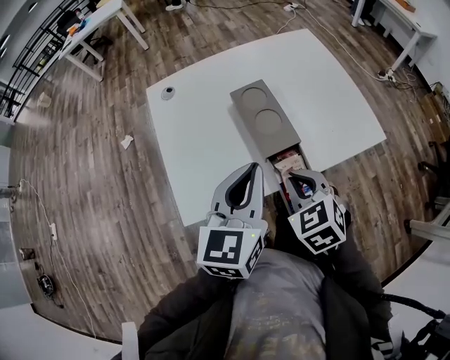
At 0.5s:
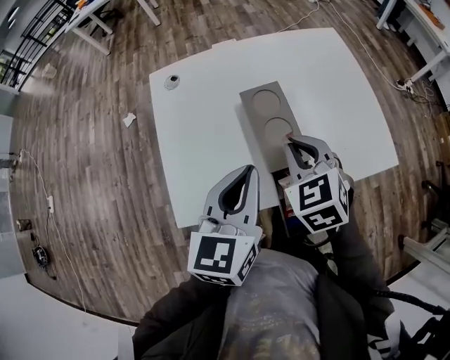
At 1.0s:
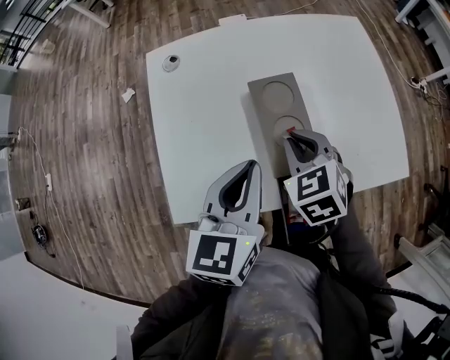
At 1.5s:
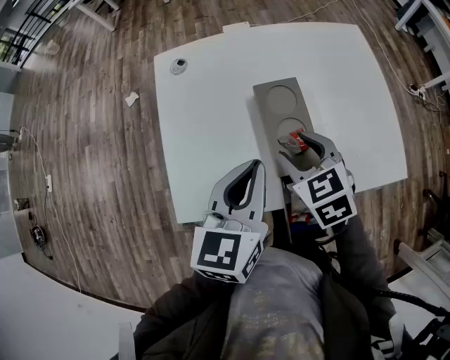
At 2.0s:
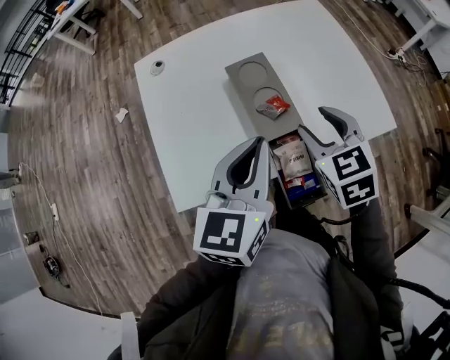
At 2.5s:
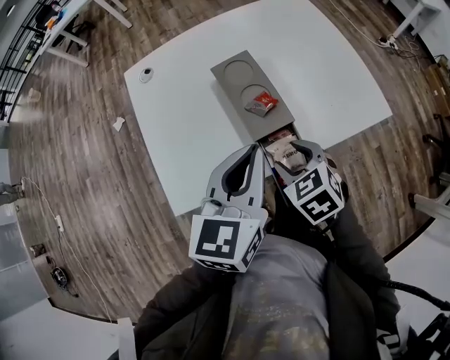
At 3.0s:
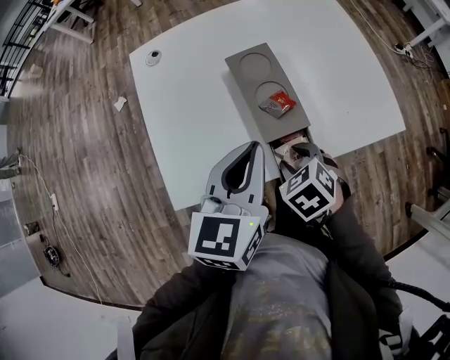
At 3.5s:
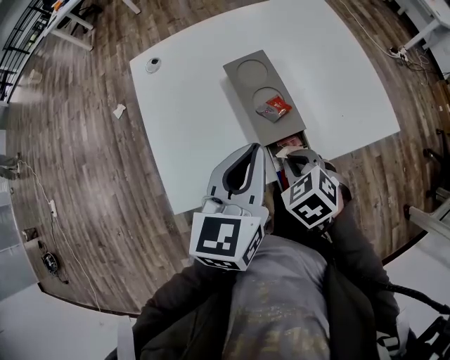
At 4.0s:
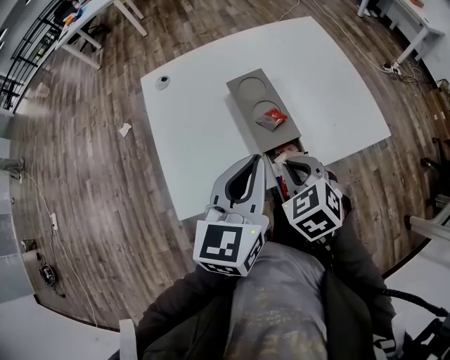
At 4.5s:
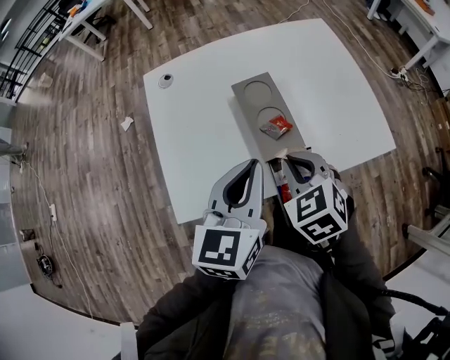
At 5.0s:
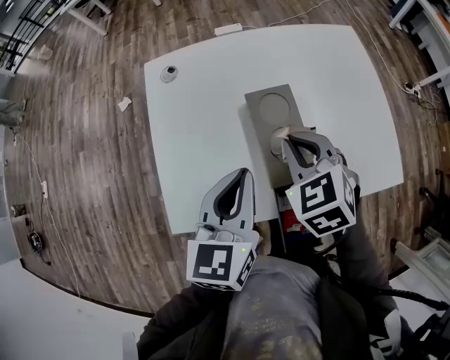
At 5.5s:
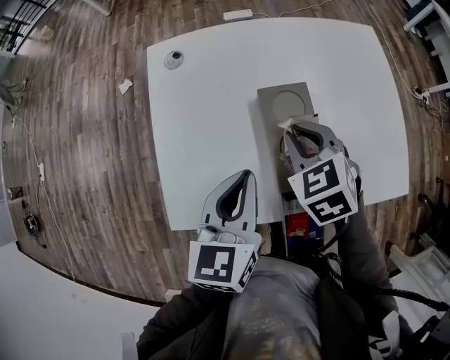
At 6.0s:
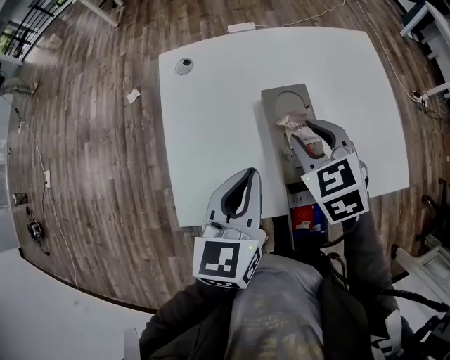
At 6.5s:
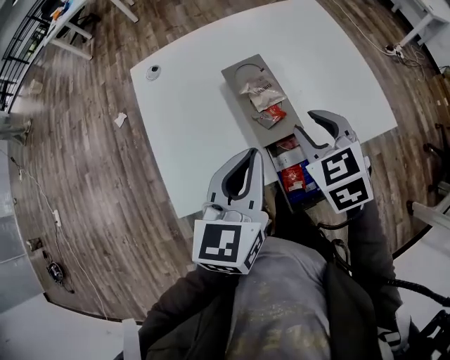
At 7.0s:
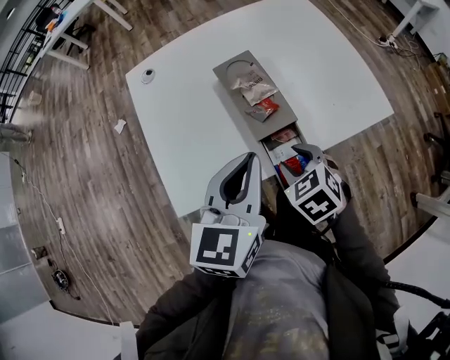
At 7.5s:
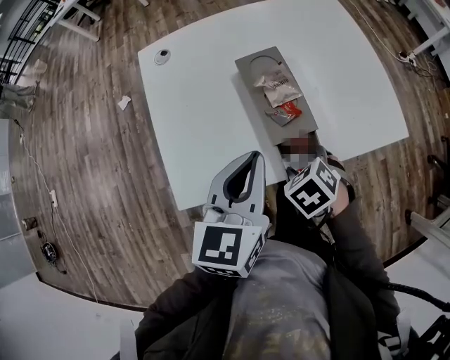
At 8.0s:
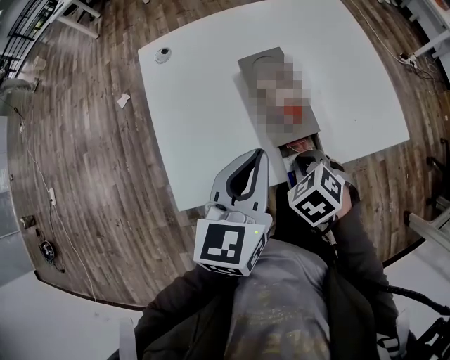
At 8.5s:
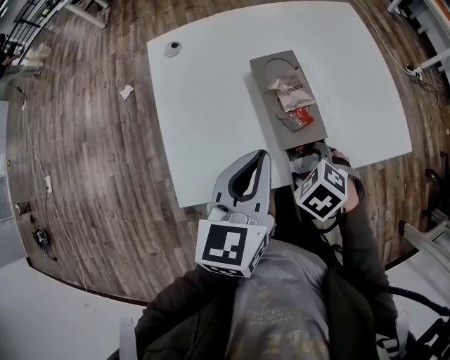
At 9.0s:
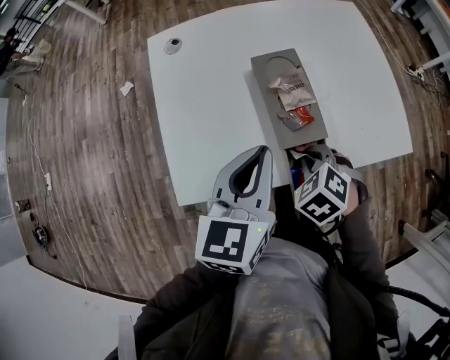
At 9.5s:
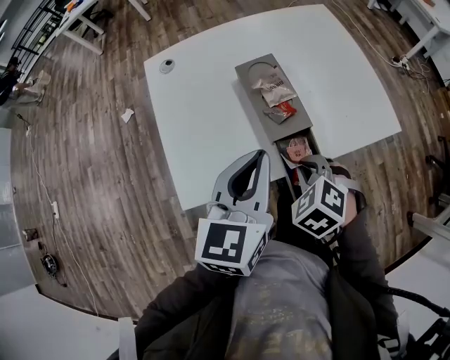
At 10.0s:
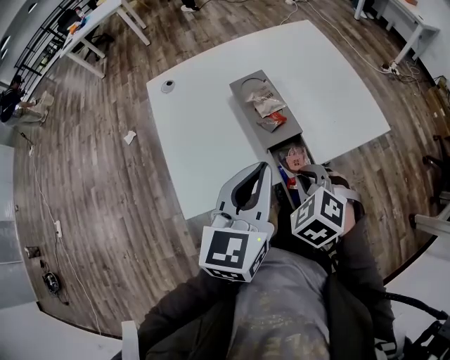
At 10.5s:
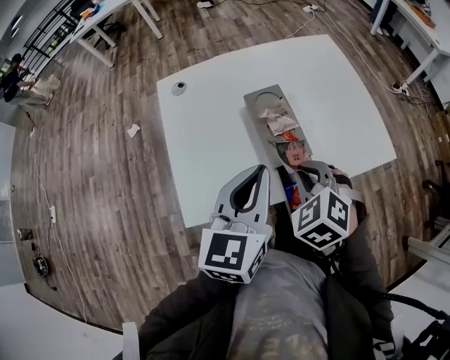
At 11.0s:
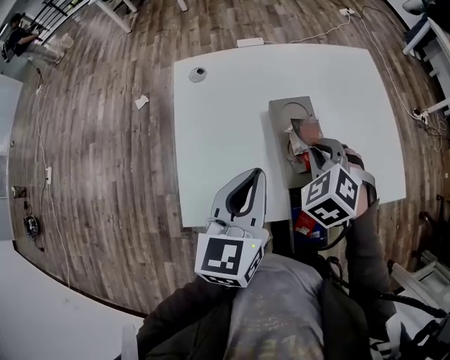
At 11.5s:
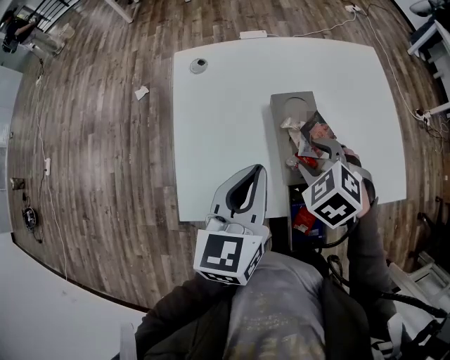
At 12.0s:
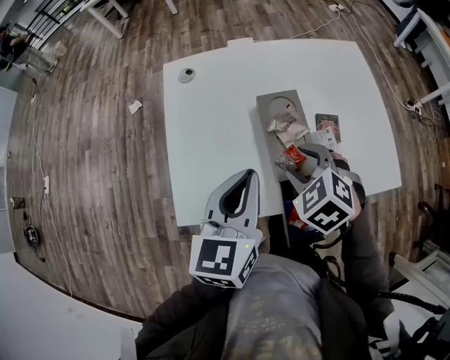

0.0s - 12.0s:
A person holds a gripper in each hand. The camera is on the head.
0.0s - 2.0s: The right gripper goes approximately 10 cm forward and to the right, and opens its fingers.
2.0s - 4.0s: The right gripper shifts some 10 cm backward and to the left, reaches roughly 15 cm downward, then returns, and closes.
4.0s - 6.0s: The right gripper goes about 15 cm forward, and opens up. Meanwhile the left gripper shifts approximately 10 cm forward and to the left.
6.0s - 8.0s: The right gripper shifts about 20 cm backward and downward, rotates about 20 degrees, and closes its fingers.
8.0s - 10.0s: The right gripper is displaced upward by approximately 5 cm, and opens, then closes again, while the left gripper is displaced backward by about 5 cm.
10.0s - 12.0s: The left gripper heads forward and to the left, covering approximately 10 cm. The right gripper is displaced forward by some 15 cm, and opens up.

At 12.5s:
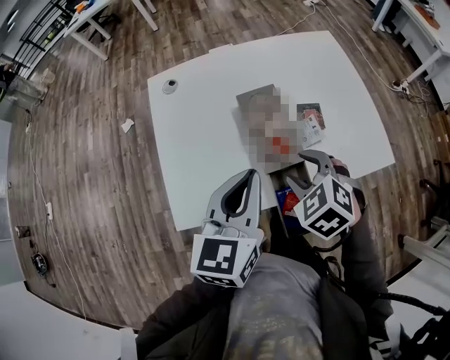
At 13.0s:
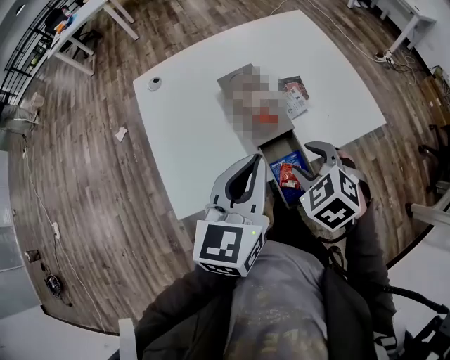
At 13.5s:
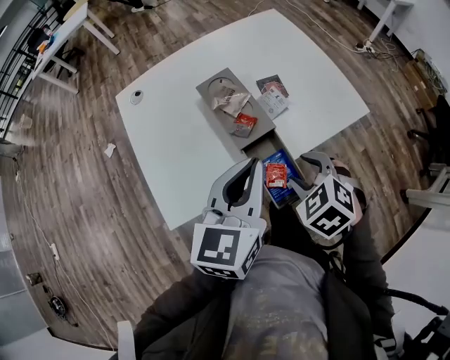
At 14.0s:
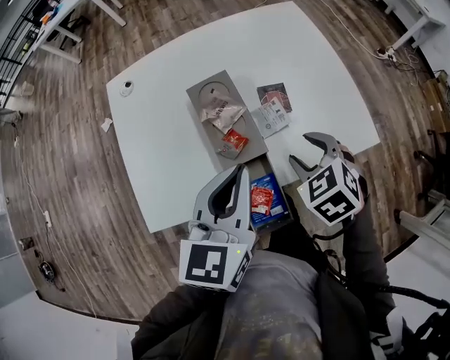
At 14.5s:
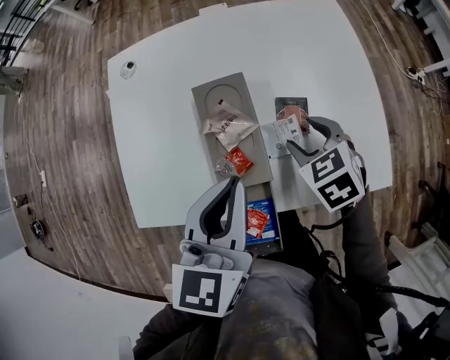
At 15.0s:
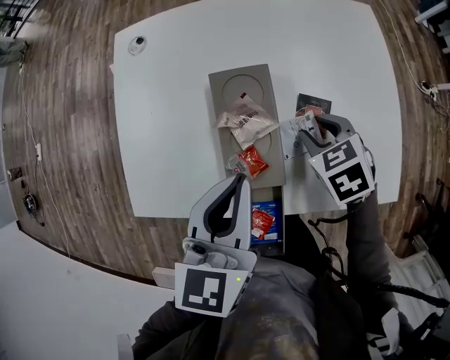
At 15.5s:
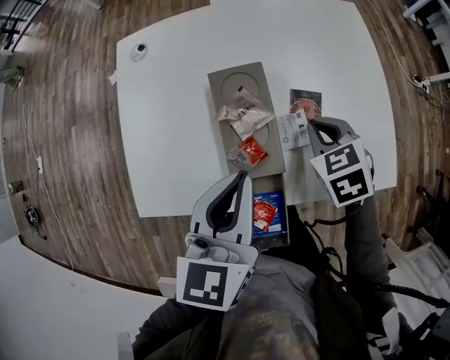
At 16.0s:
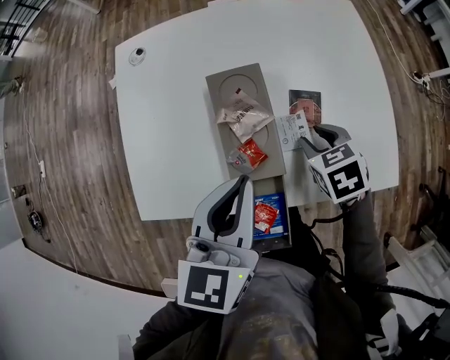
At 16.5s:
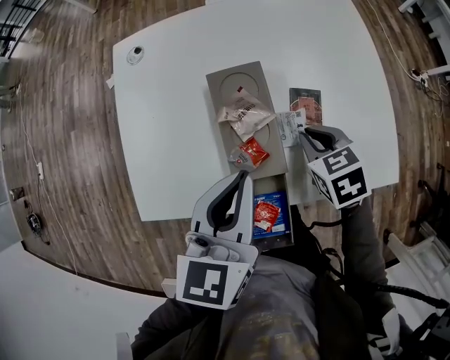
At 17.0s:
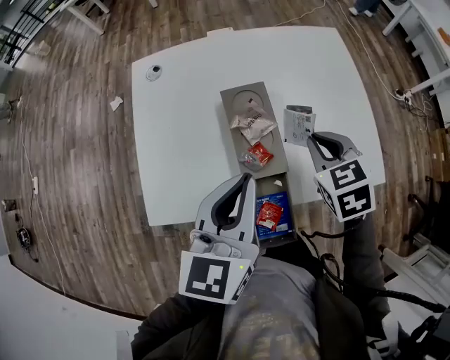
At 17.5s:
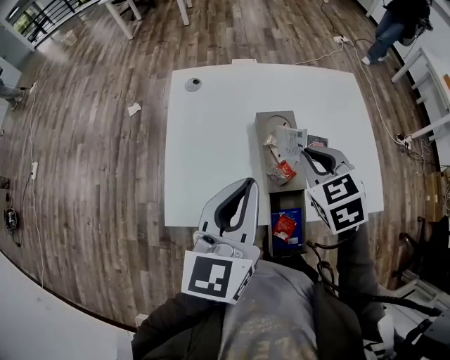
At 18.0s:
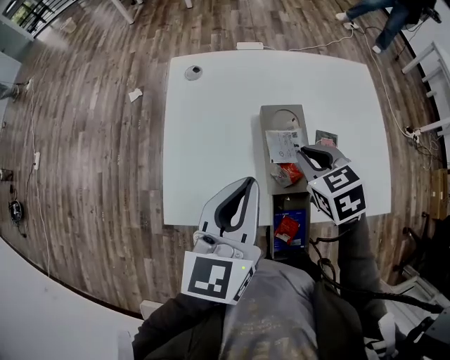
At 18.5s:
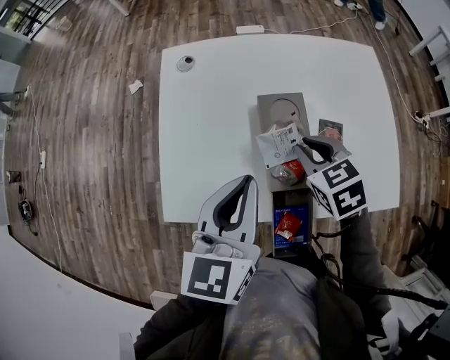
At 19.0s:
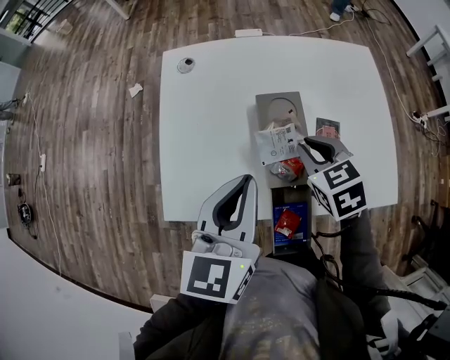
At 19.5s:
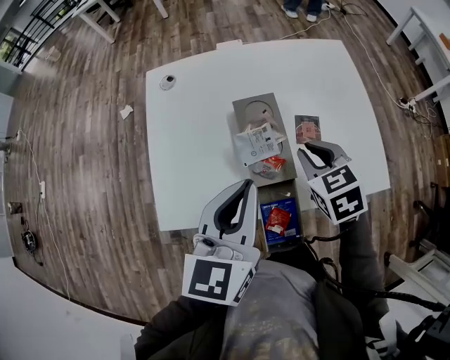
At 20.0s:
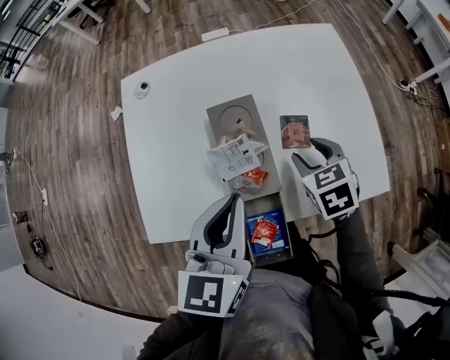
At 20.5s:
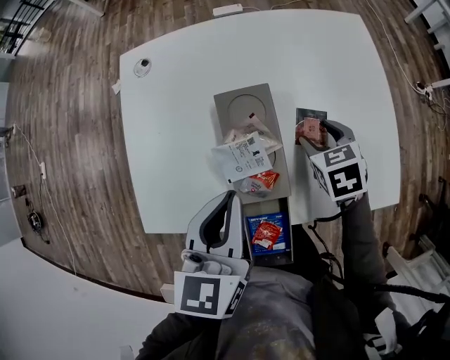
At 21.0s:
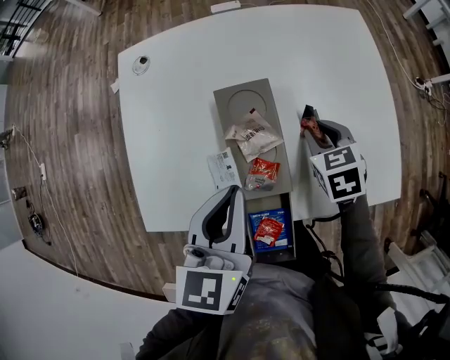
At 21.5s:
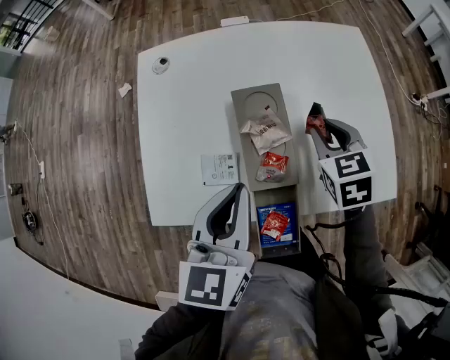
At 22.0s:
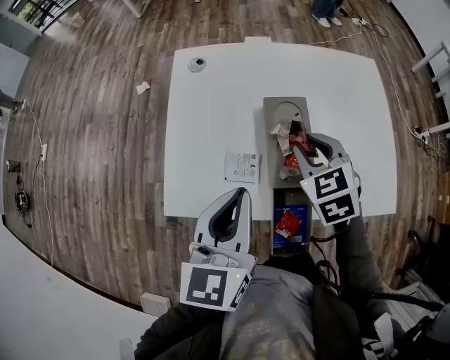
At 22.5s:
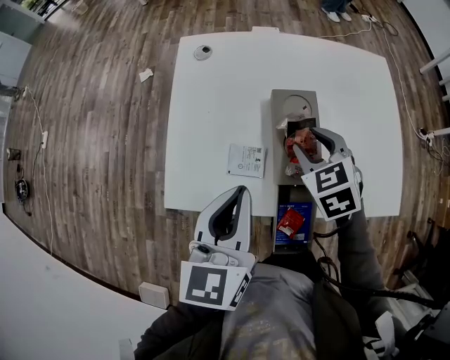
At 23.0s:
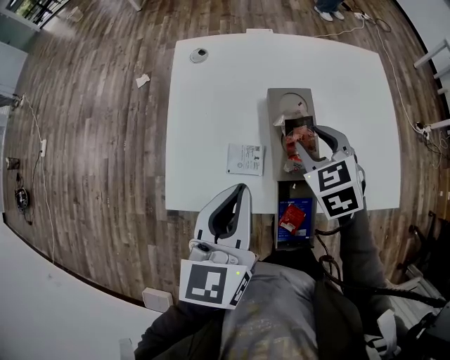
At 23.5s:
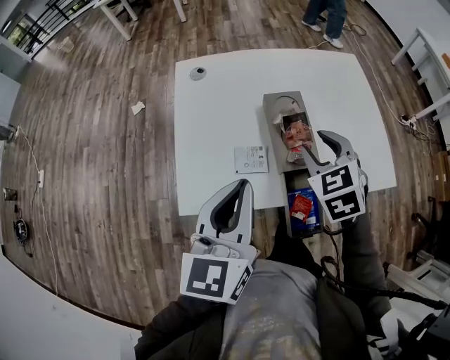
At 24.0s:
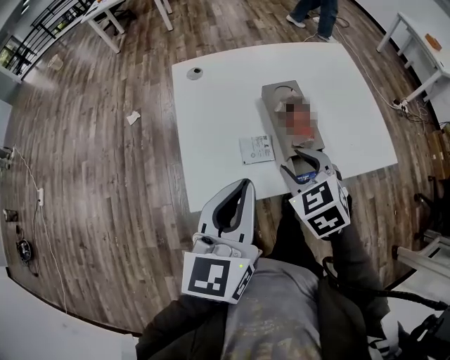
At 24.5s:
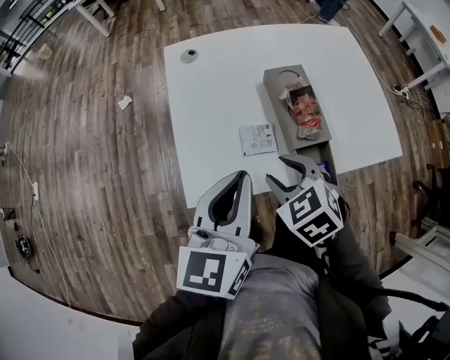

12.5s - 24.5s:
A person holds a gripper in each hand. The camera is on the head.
12.5s - 14.5s: The left gripper shifts about 10 cm to the right and forward. Meanwhile the right gripper is displaced forward, to the right and downward by about 15 cm.
14.5s - 16.5s: The right gripper closes.
16.5s - 18.5s: The left gripper heads to the left, covering approximately 10 cm. The right gripper heads to the left and upward, covering approximately 10 cm.
18.5s - 20.5s: The left gripper heads to the right and downward, covering some 5 cm, while the right gripper travels to the right and downward by approximately 15 cm, and opens up.
20.5s - 22.5s: The right gripper heads to the left and upward, covering approximately 15 cm, and rotates roughly 20 degrees; the left gripper is displaced to the left and backward by some 10 cm.
22.5s - 24.5s: The right gripper heads backward and to the left, covering about 20 cm, while the left gripper goes about 5 cm to the left.

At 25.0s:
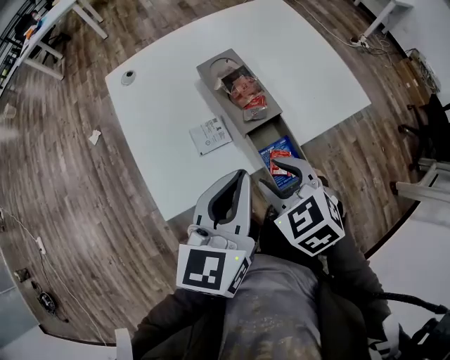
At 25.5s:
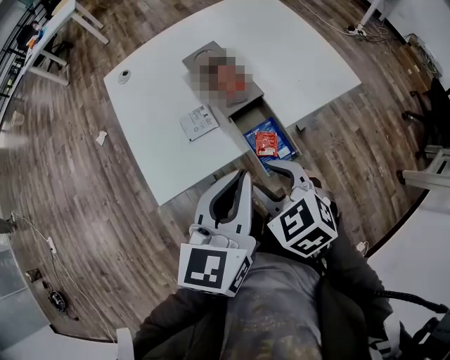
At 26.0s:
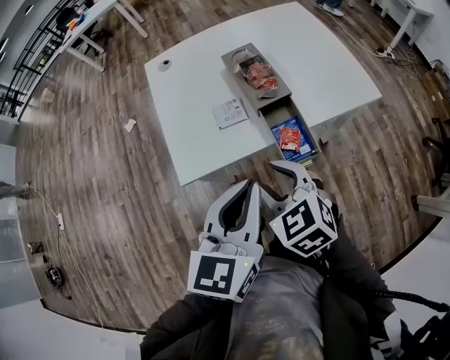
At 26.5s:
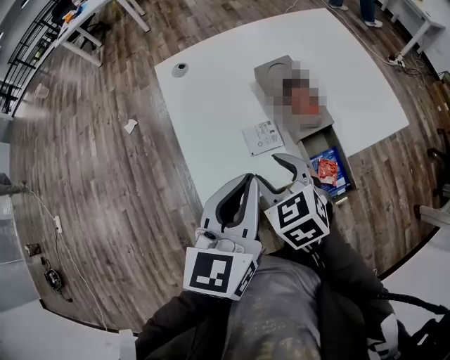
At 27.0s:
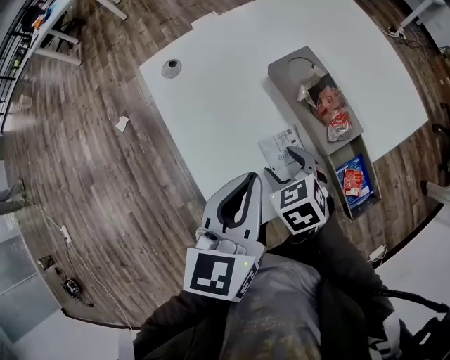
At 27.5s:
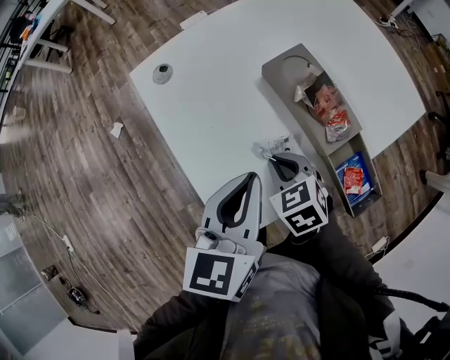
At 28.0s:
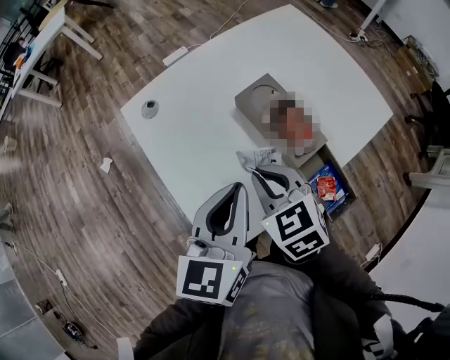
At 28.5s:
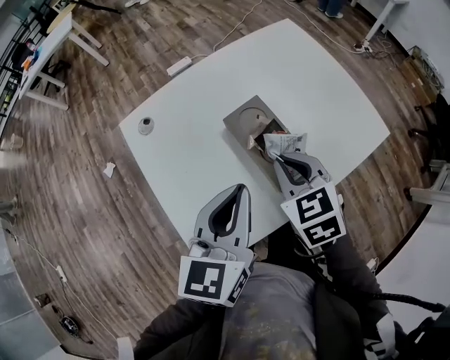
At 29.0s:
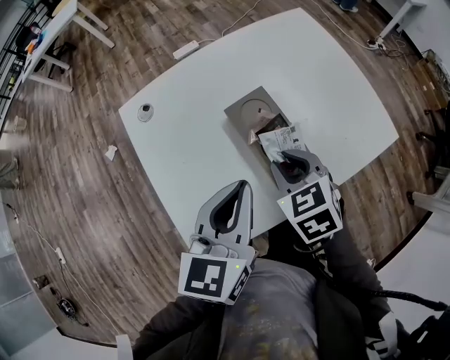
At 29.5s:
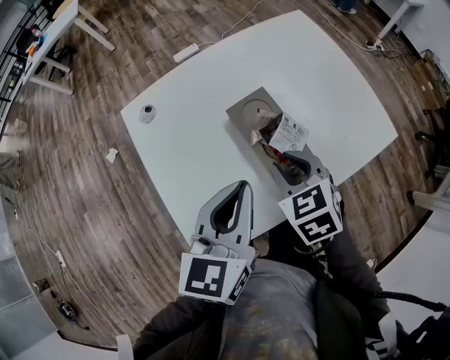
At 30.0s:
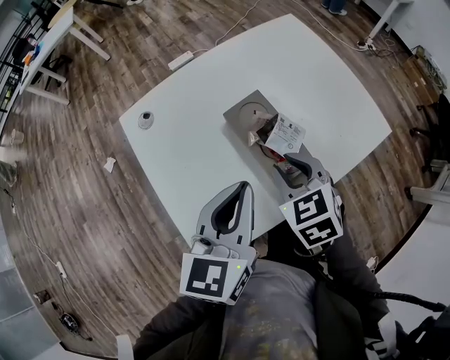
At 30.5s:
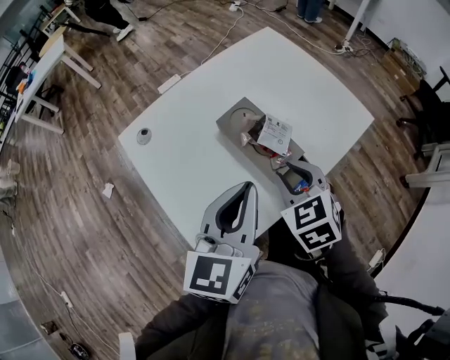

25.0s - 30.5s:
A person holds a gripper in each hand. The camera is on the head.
25.0s - 27.0s: The left gripper travels to the left and forward by roughly 15 cm. The right gripper moves to the left, downward and forward, about 20 cm.
27.0s - 28.5s: The right gripper heads upward, to the right and forward, covering some 20 cm, and closes its fingers; the left gripper moves to the right, some 10 cm.
28.5s - 30.5s: The right gripper shifts some 5 cm backward.
